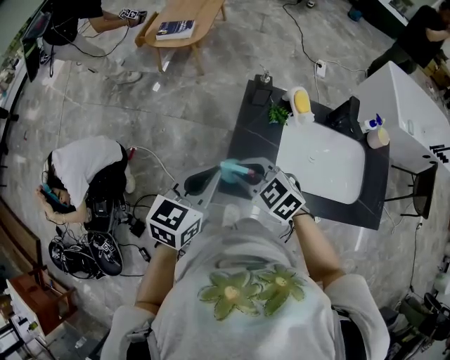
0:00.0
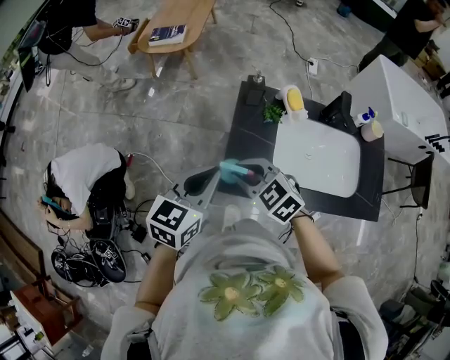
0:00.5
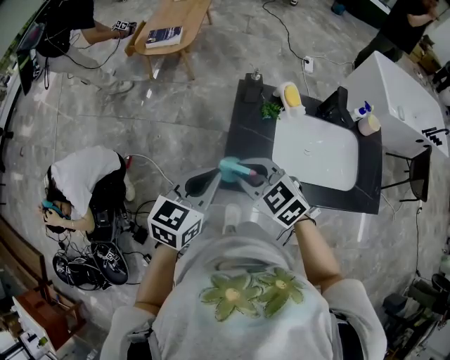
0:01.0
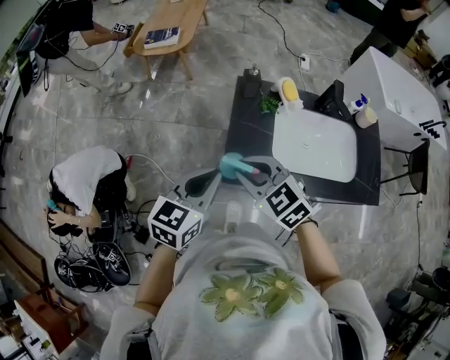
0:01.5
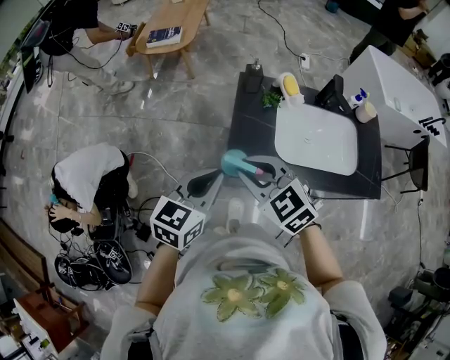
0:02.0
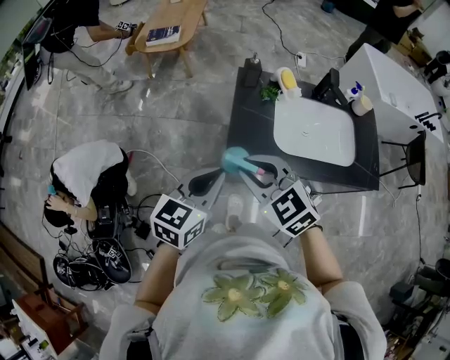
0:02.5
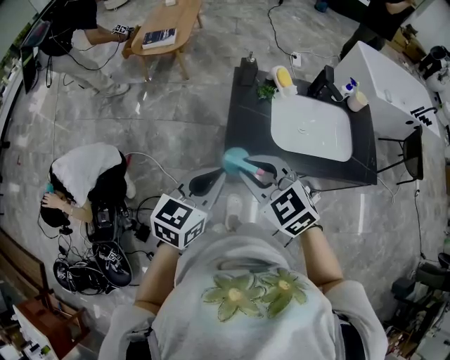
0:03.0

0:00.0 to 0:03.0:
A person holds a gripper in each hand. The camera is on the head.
0:00.0 to 0:01.5: The right gripper goes some 5 cm upward.
0:01.5 to 0:03.0: Both grippers travel together backward, approximately 10 cm.

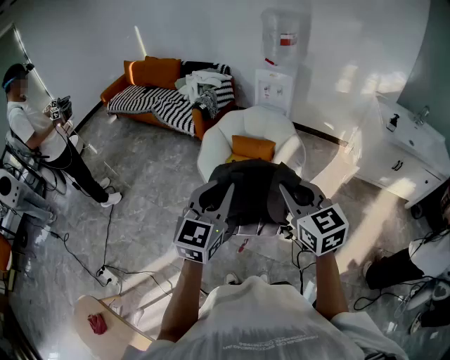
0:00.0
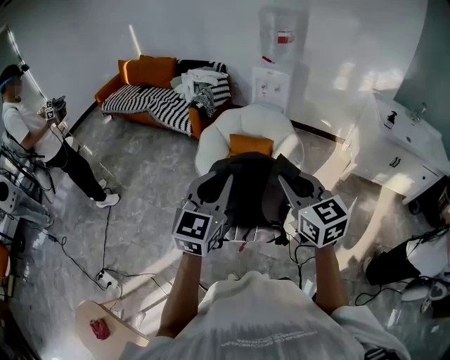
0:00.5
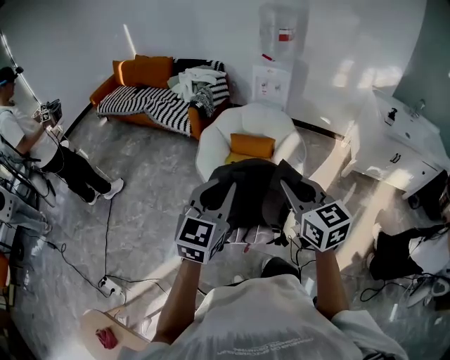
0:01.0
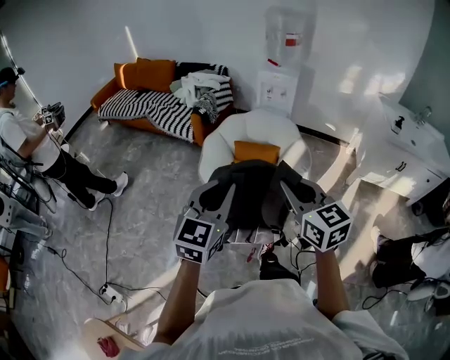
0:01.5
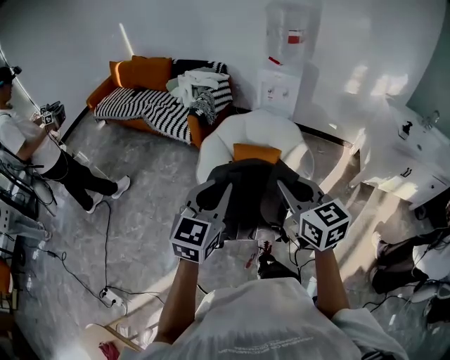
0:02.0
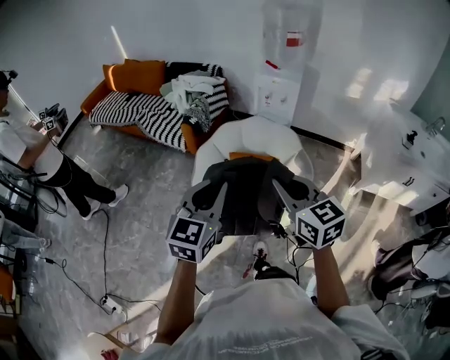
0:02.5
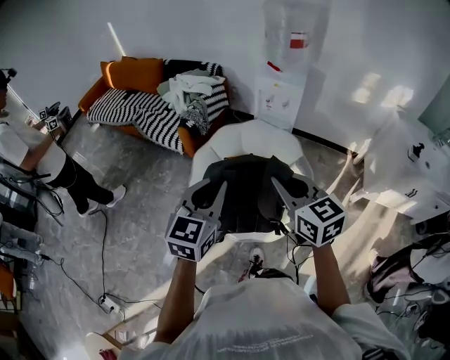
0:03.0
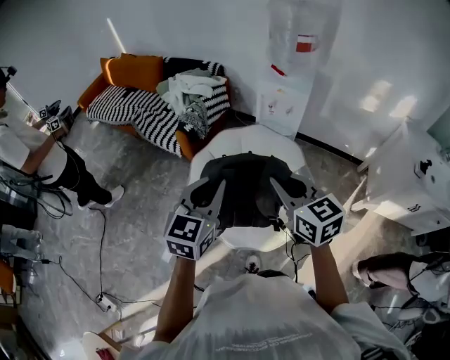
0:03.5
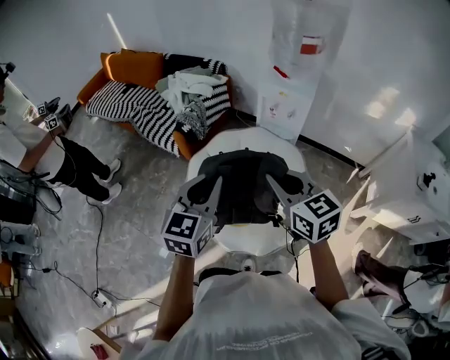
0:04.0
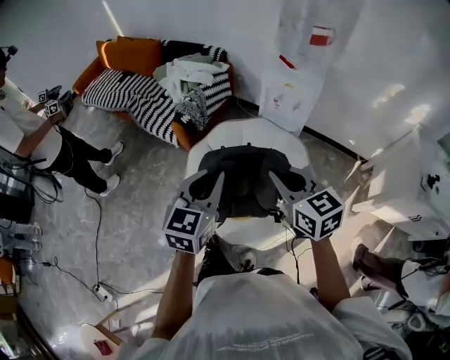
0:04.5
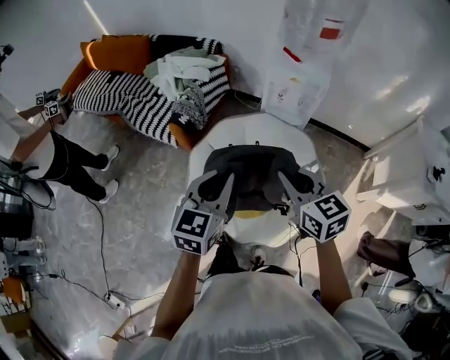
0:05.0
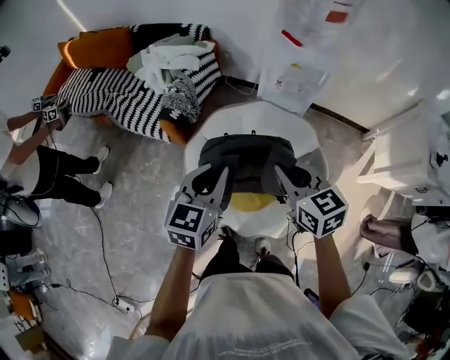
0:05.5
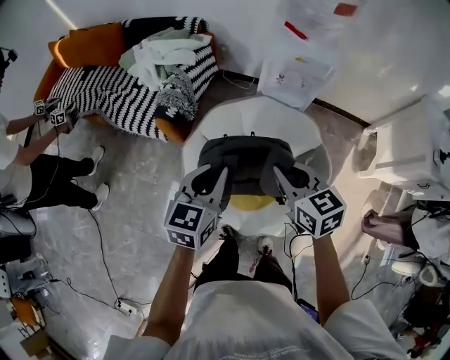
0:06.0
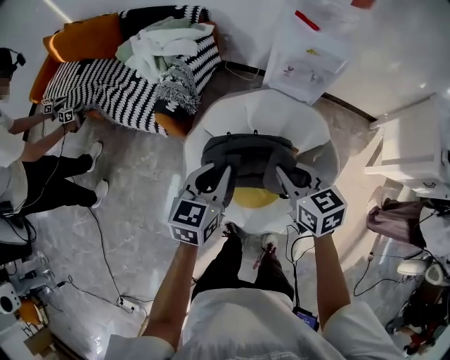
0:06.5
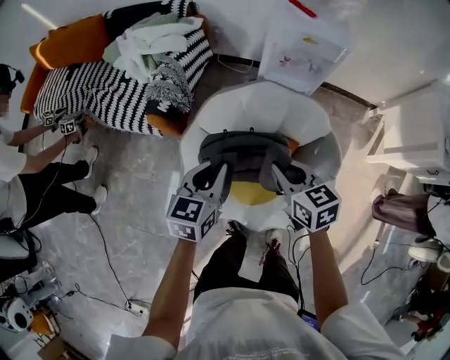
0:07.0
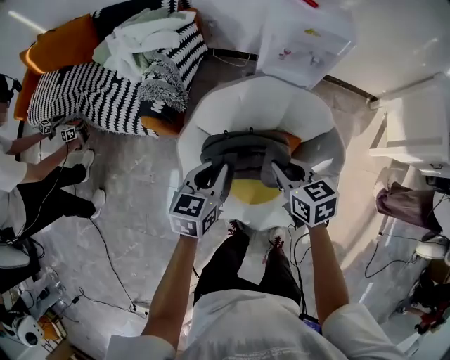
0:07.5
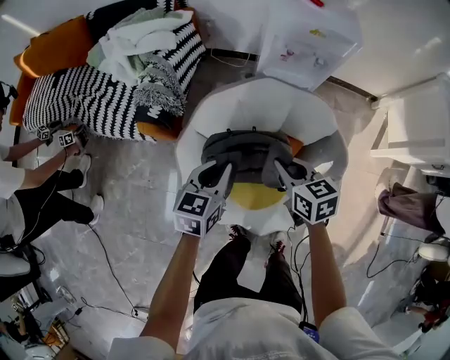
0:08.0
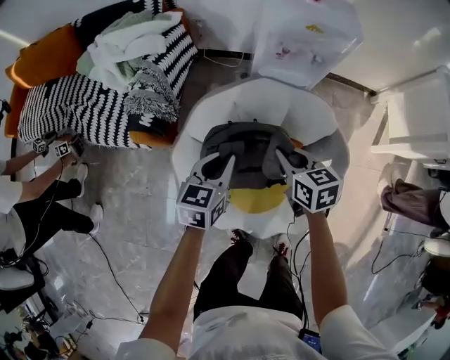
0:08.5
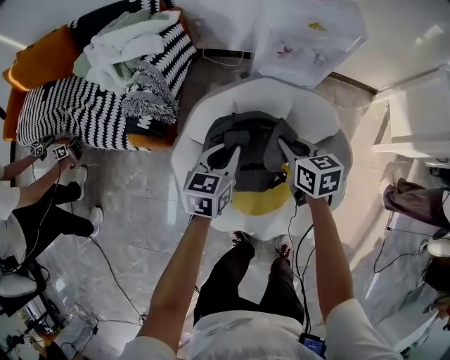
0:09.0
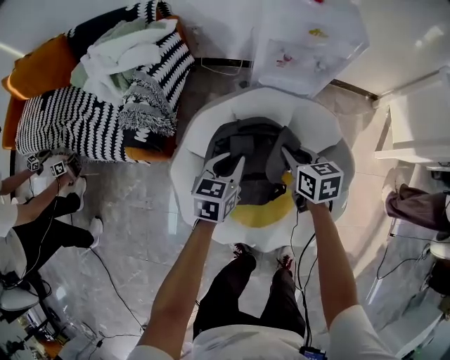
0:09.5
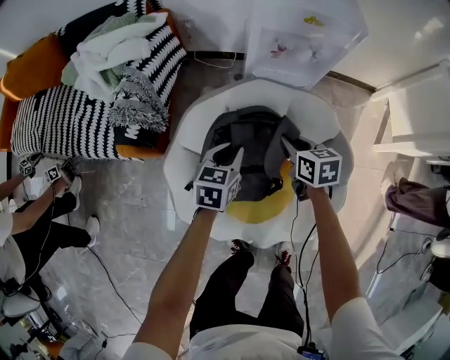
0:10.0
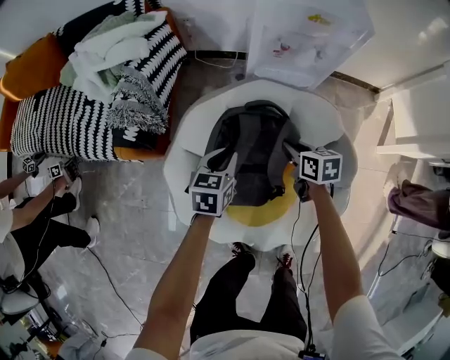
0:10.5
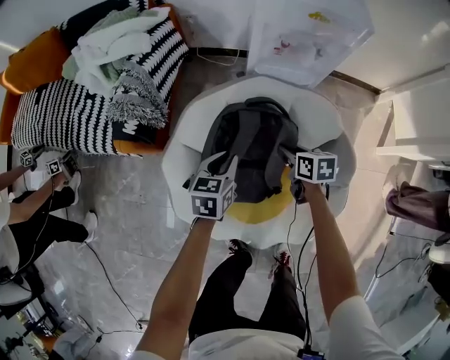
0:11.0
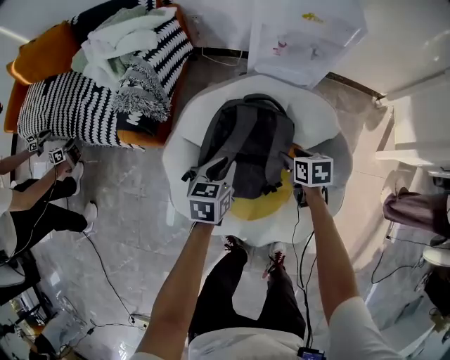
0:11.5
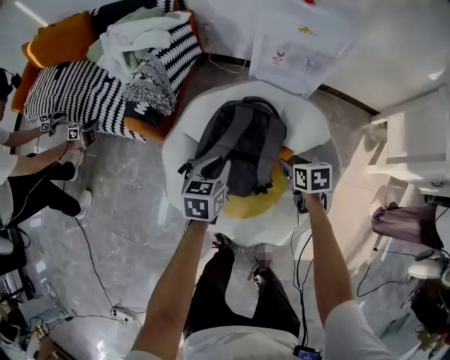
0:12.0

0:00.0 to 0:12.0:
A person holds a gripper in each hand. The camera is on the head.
0:00.0 to 0:02.0: The grippers both shift forward by some 20 cm.
0:02.0 to 0:04.0: The two grippers go roughly 35 cm forward.
0:04.0 to 0:06.0: The right gripper goes some 20 cm forward, downward and to the left, while the left gripper shifts about 25 cm forward and downward.
0:06.0 to 0:08.0: The right gripper moves downward, roughly 20 cm; the left gripper is displaced downward and forward by about 20 cm.
0:08.0 to 0:10.0: The grippers both shift downward, forward and to the right by roughly 20 cm.
0:10.0 to 0:12.0: The right gripper is displaced backward and to the right by some 10 cm, and opens; the left gripper shifts some 10 cm backward.

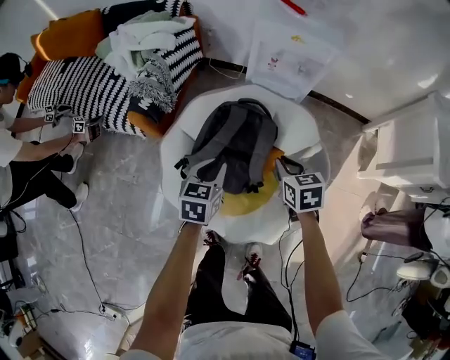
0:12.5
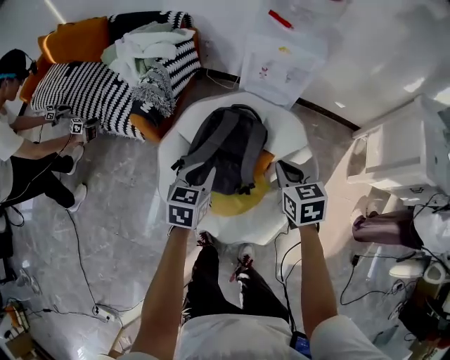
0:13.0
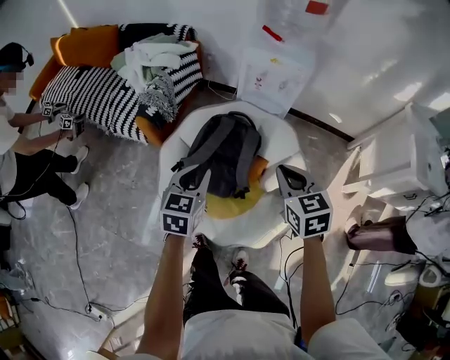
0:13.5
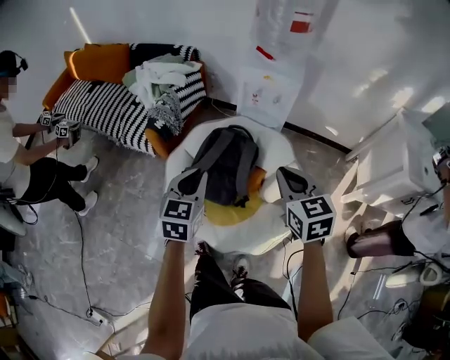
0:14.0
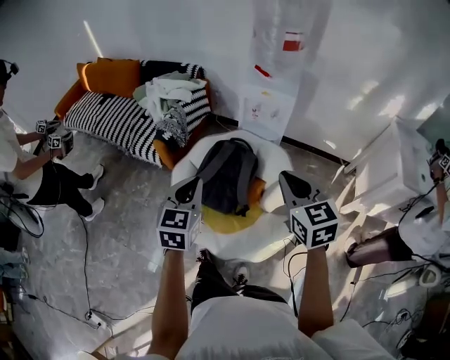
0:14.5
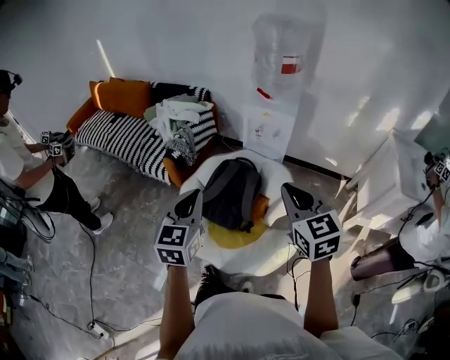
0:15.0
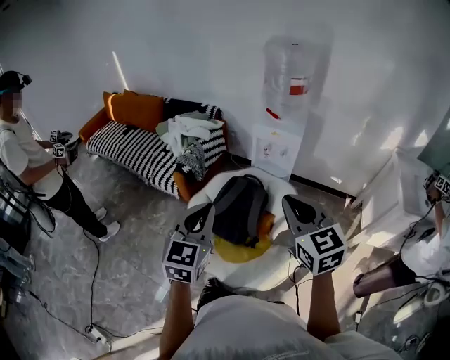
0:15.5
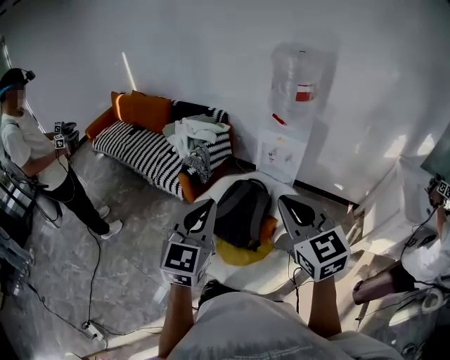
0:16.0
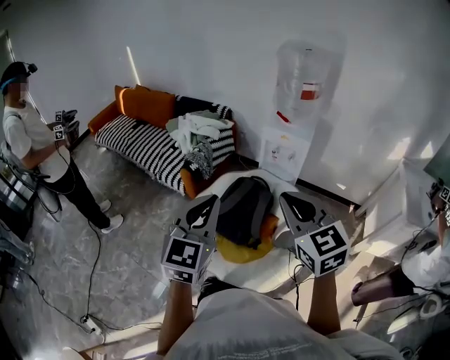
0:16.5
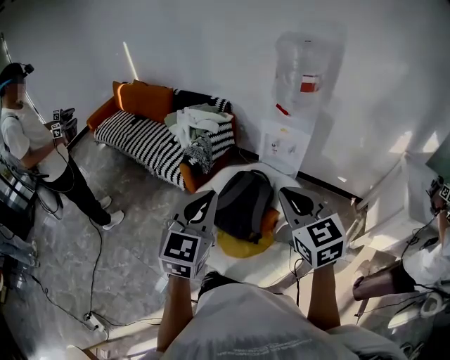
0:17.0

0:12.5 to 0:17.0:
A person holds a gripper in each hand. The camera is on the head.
0:12.5 to 0:14.5: The two grippers go roughly 35 cm upward and backward. The right gripper swivels approximately 30 degrees, while the left gripper swivels about 30 degrees.
0:14.5 to 0:17.0: The left gripper goes approximately 20 cm upward and backward. Meanwhile the right gripper heads upward, covering approximately 10 cm.

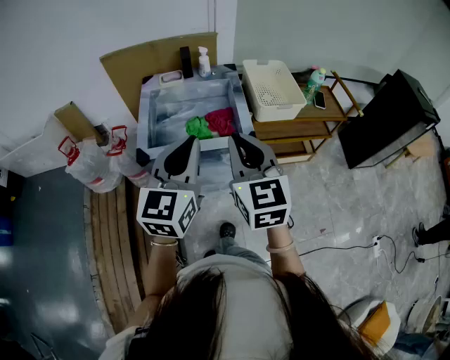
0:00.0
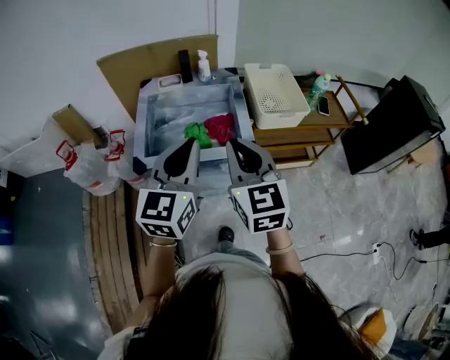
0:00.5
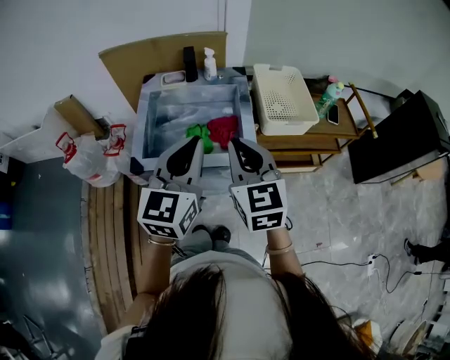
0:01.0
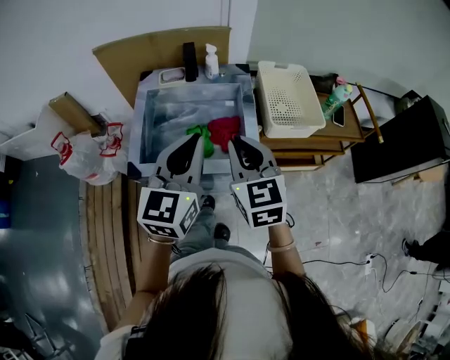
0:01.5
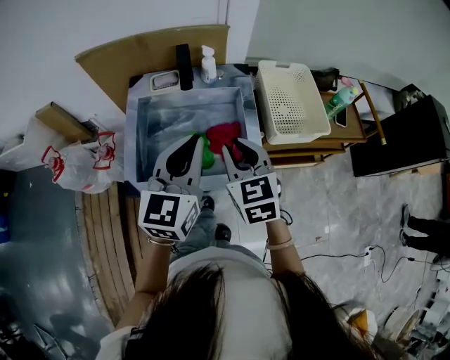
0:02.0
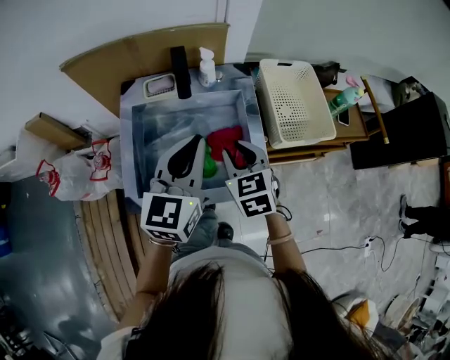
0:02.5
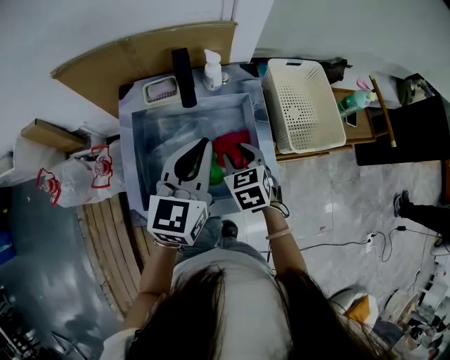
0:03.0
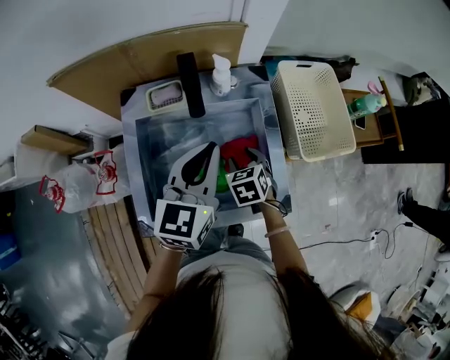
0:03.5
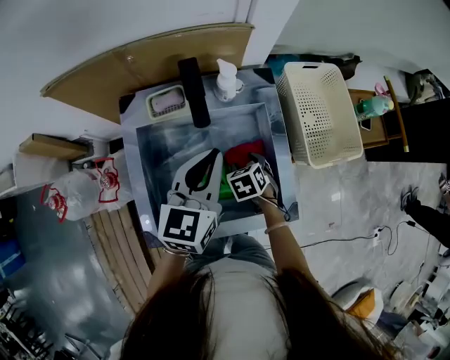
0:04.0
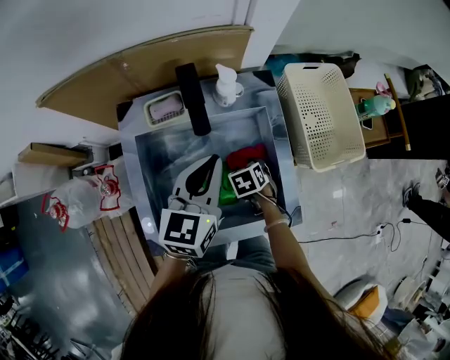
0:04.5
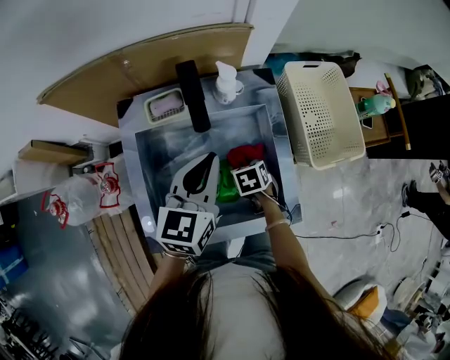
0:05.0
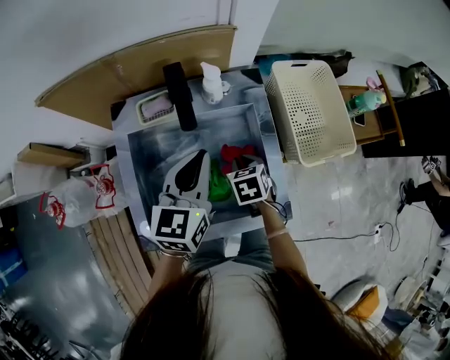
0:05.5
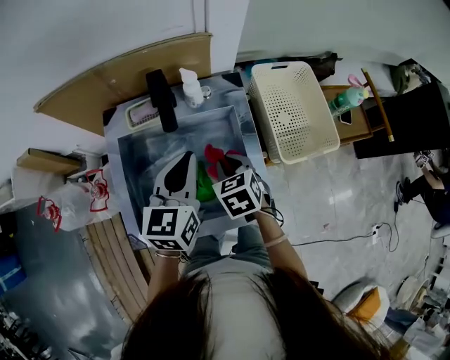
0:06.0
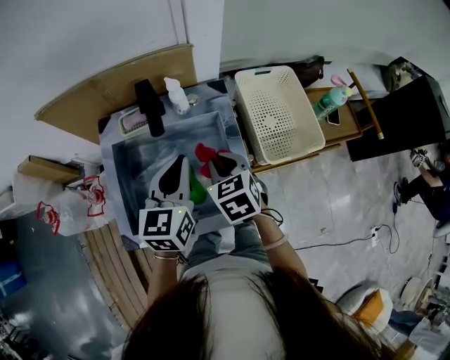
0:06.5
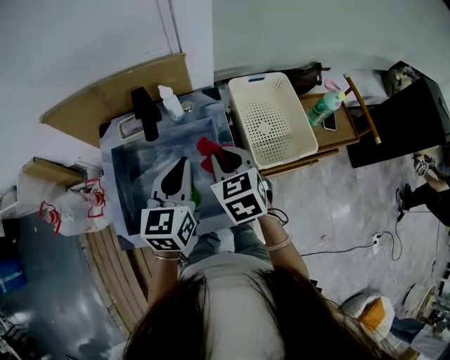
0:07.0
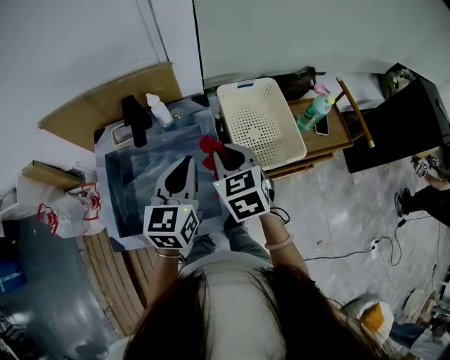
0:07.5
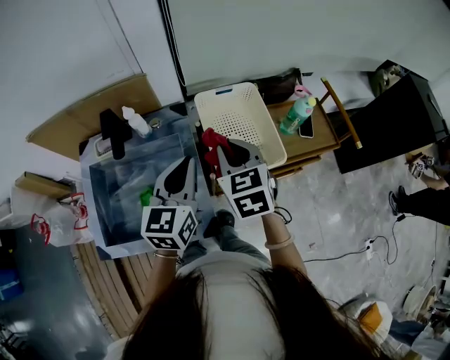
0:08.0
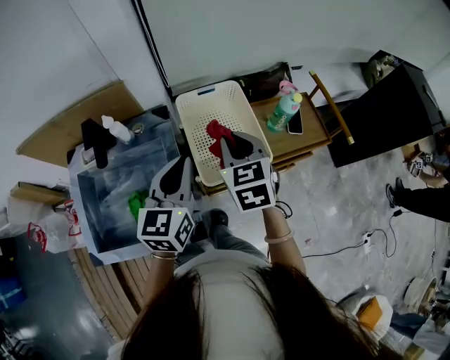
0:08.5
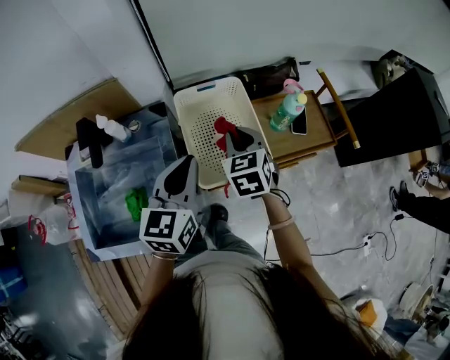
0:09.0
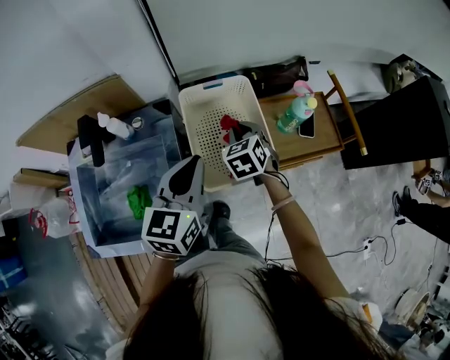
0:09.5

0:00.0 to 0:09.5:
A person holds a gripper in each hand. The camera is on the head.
0:00.0 to 0:02.0: The right gripper shifts approximately 25 cm forward and downward. Meanwhile the left gripper shifts some 25 cm forward.
0:02.0 to 0:04.0: The left gripper shifts some 20 cm forward and downward. Meanwhile the right gripper heads downward and forward, covering some 30 cm, tips its fingers downward by about 40 degrees, and opens.
0:04.0 to 0:05.5: The right gripper shifts by approximately 5 cm, and closes its fingers.
0:05.5 to 0:07.5: The right gripper shifts roughly 25 cm upward and to the right, and turns by approximately 30 degrees. The left gripper shifts approximately 15 cm to the right and upward.
0:07.5 to 0:09.5: The right gripper is displaced to the right, forward and downward by approximately 25 cm. The left gripper travels to the right and forward by roughly 15 cm.
